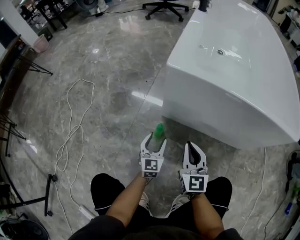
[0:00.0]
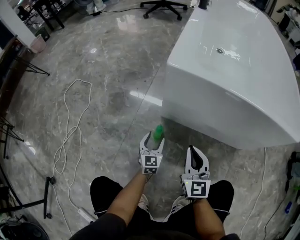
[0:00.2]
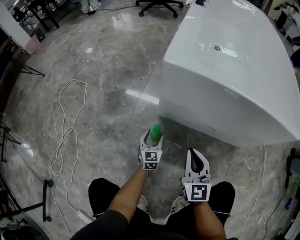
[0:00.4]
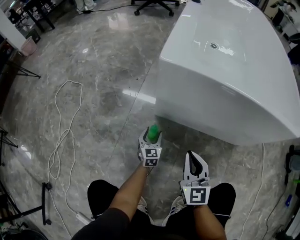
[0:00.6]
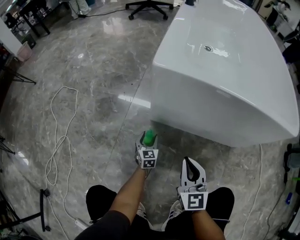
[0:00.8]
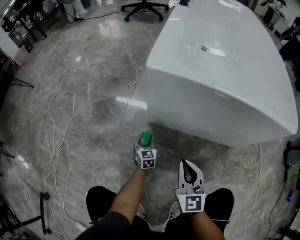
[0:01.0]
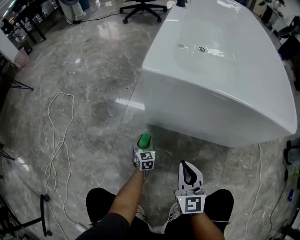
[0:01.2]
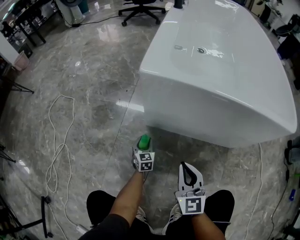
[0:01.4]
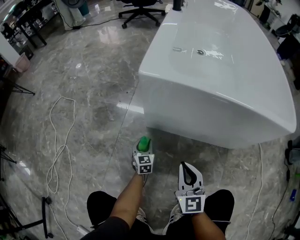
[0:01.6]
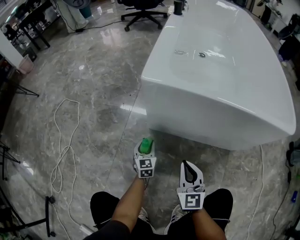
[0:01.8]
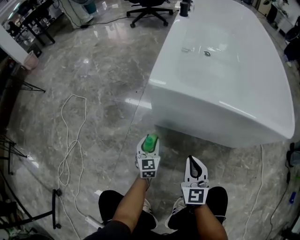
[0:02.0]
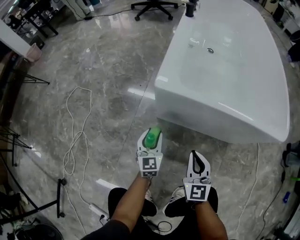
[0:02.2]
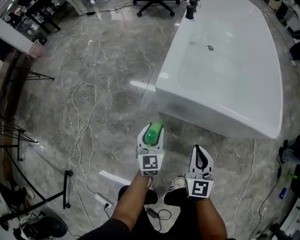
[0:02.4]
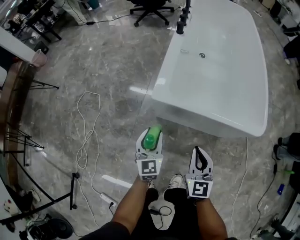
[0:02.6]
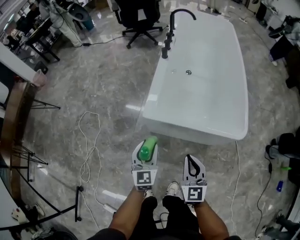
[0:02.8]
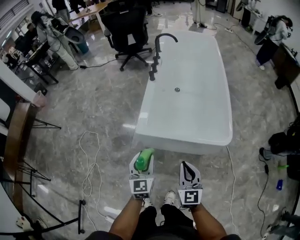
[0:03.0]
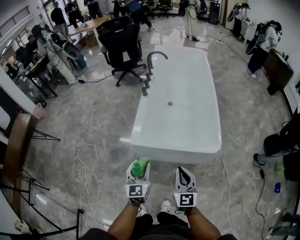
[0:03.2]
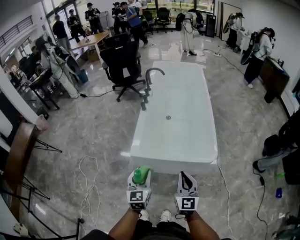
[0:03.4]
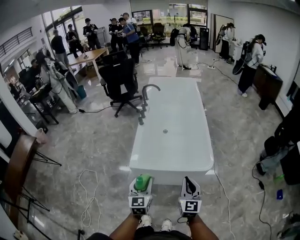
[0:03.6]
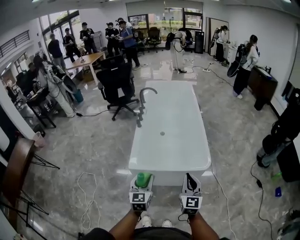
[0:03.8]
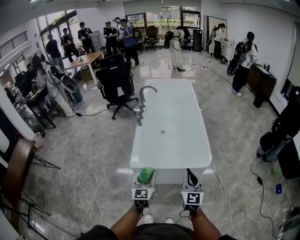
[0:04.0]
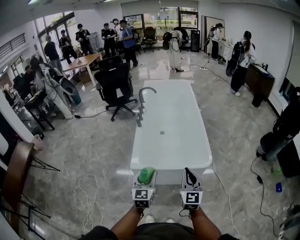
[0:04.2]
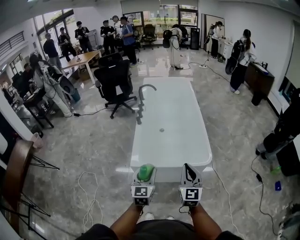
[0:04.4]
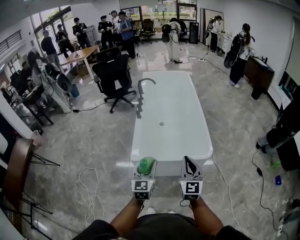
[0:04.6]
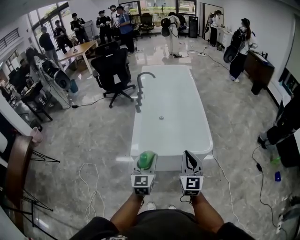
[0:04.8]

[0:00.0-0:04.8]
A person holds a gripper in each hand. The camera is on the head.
0:00.0 to 0:01.6: The left gripper goes some 15 cm downward and forward.
0:01.6 to 0:03.2: The grippers both shift upward by about 70 cm.
0:03.2 to 0:04.8: Both grippers move upward, approximately 10 cm.

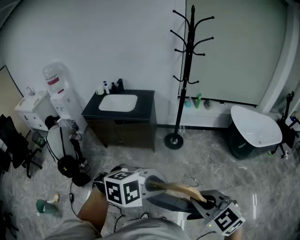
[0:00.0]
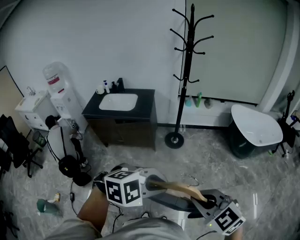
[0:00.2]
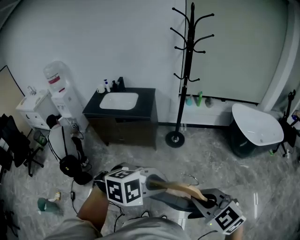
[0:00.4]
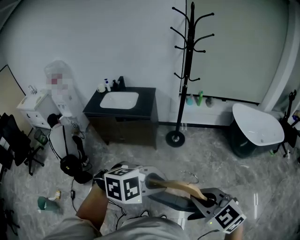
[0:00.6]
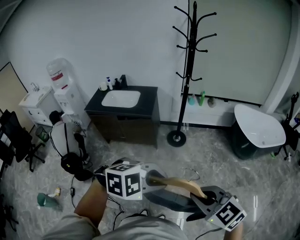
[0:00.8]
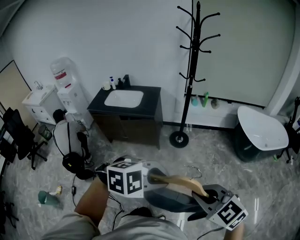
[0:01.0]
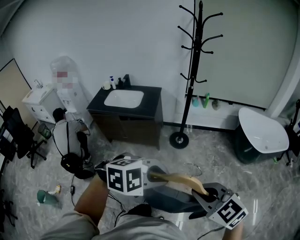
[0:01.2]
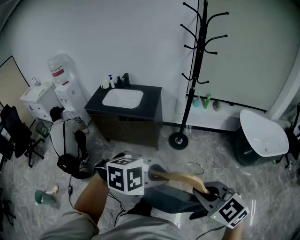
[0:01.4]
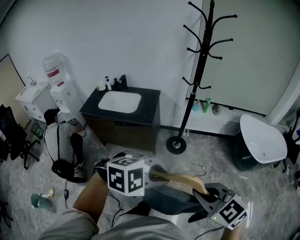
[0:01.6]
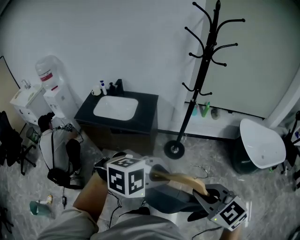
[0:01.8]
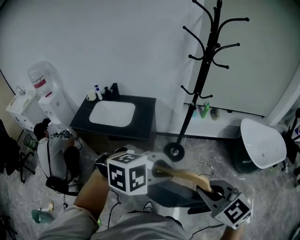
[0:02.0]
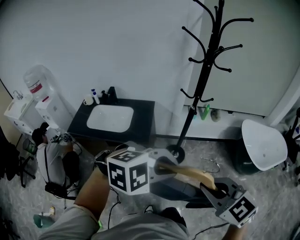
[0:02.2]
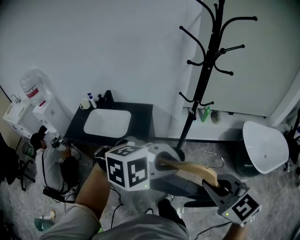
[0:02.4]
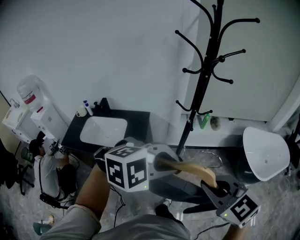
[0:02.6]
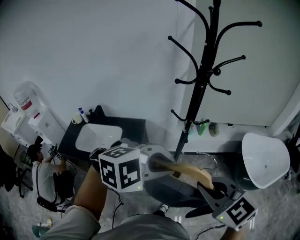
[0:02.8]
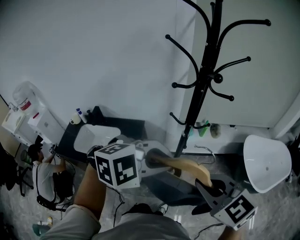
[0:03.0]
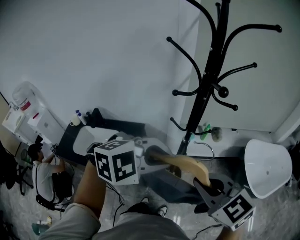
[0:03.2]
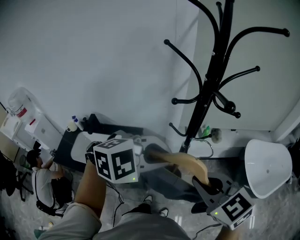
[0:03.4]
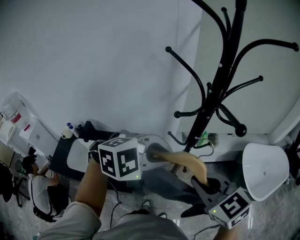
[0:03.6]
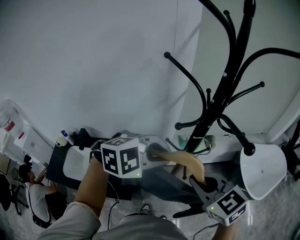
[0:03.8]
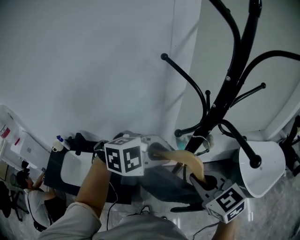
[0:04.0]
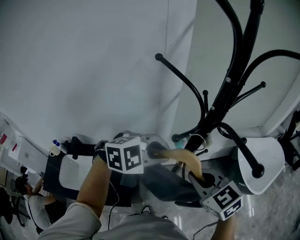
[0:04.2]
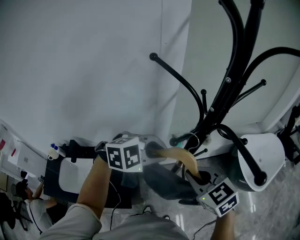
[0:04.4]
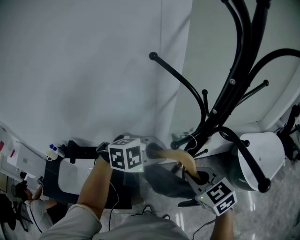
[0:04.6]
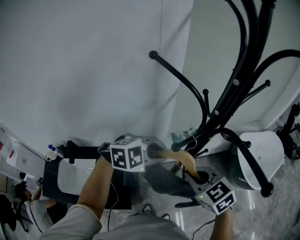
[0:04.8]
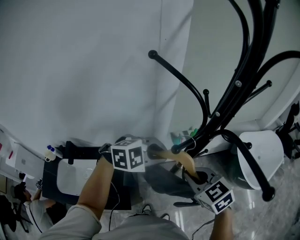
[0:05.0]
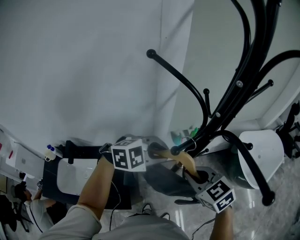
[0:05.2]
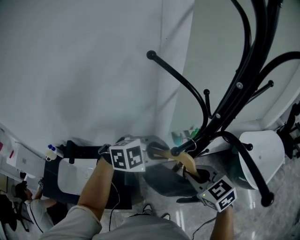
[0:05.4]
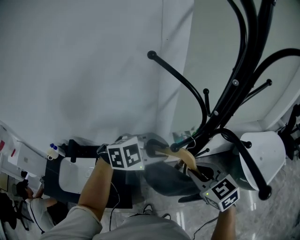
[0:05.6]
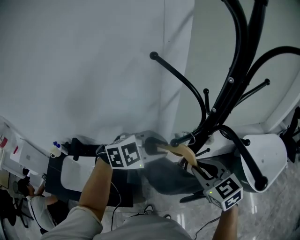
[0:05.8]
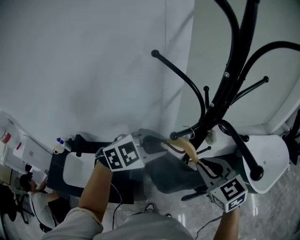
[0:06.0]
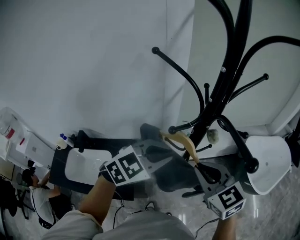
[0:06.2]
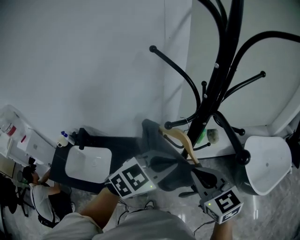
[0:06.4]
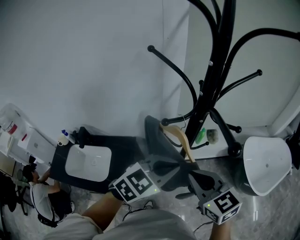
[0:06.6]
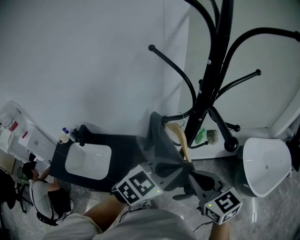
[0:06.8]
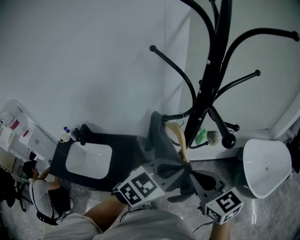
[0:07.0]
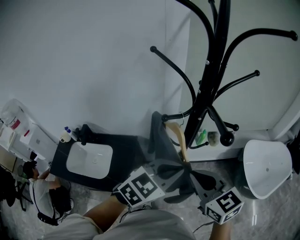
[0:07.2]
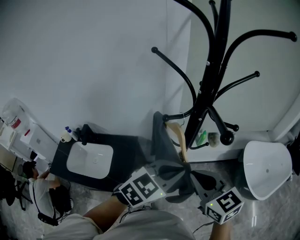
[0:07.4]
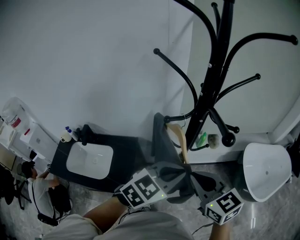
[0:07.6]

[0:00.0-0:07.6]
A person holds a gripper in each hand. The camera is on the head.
0:00.0 to 0:01.6: The left gripper ends up approximately 15 cm from where it was. The right gripper moves some 15 cm.
0:01.6 to 0:03.0: The two grippers travel together, roughly 50 cm.
0:03.0 to 0:04.6: The two grippers go roughly 25 cm forward and to the left. The right gripper turns by approximately 20 degrees.
0:04.6 to 0:06.0: The right gripper changes place by some 5 cm.
0:06.0 to 0:07.6: The left gripper goes some 15 cm backward and to the right, rotates approximately 30 degrees, and closes its fingers, while the right gripper moves backward, approximately 10 cm.

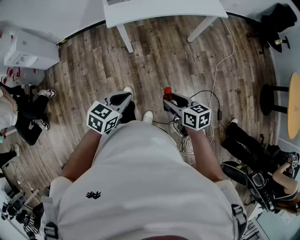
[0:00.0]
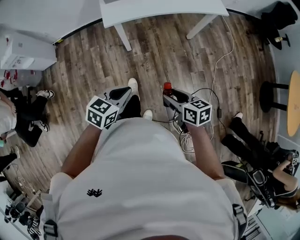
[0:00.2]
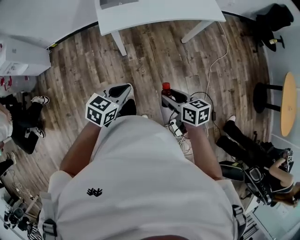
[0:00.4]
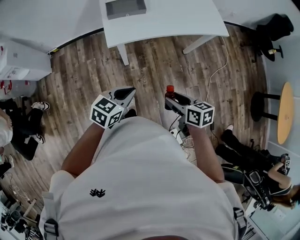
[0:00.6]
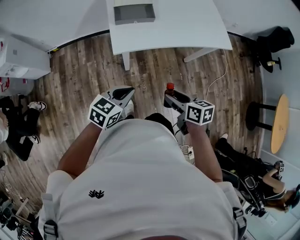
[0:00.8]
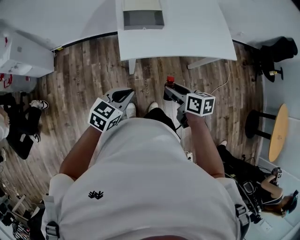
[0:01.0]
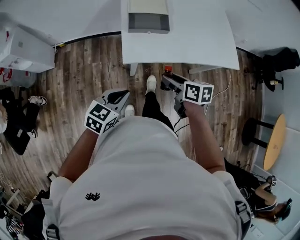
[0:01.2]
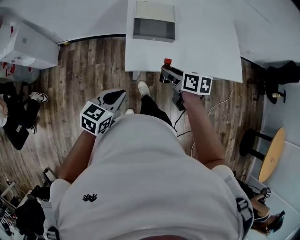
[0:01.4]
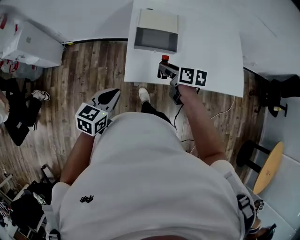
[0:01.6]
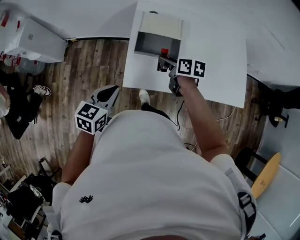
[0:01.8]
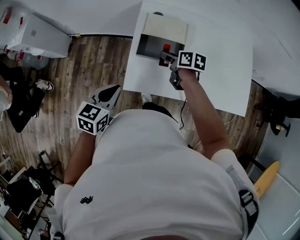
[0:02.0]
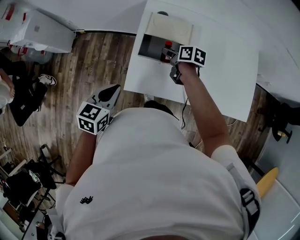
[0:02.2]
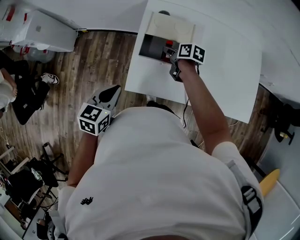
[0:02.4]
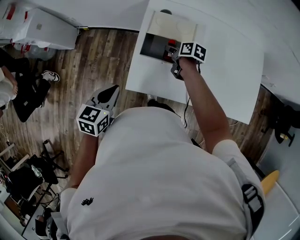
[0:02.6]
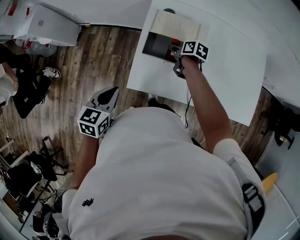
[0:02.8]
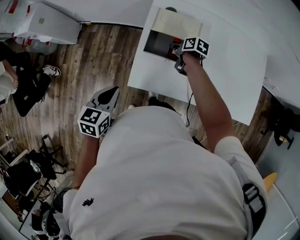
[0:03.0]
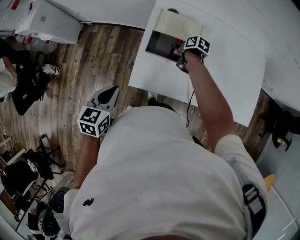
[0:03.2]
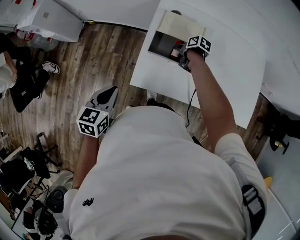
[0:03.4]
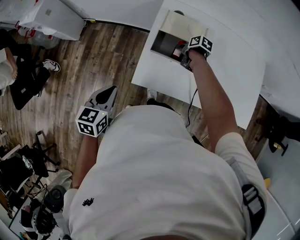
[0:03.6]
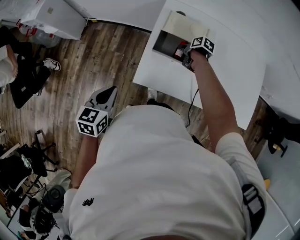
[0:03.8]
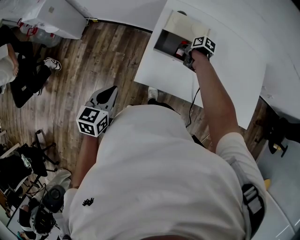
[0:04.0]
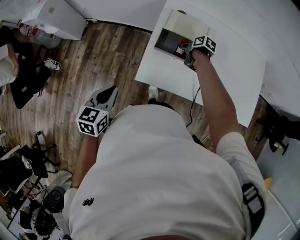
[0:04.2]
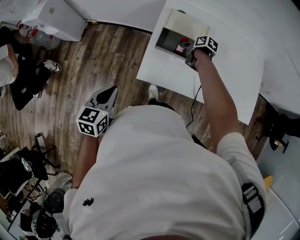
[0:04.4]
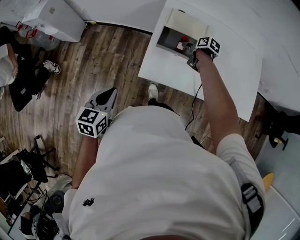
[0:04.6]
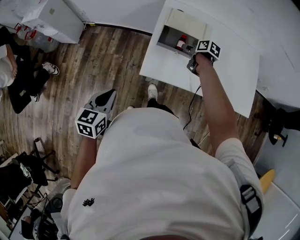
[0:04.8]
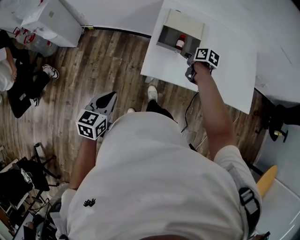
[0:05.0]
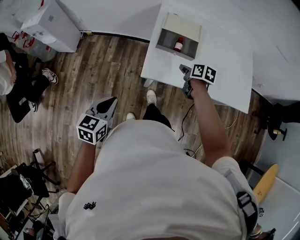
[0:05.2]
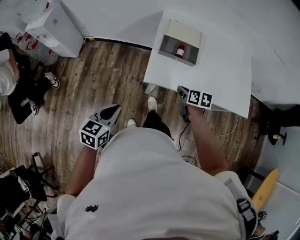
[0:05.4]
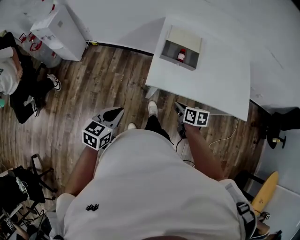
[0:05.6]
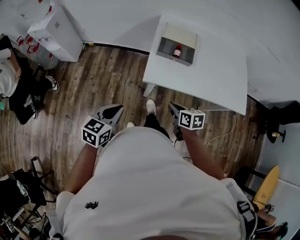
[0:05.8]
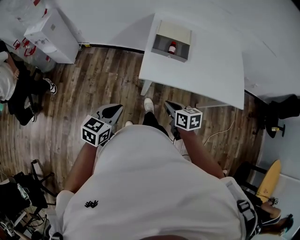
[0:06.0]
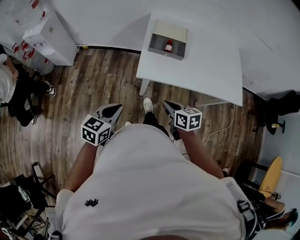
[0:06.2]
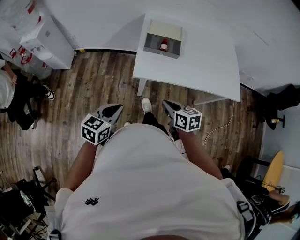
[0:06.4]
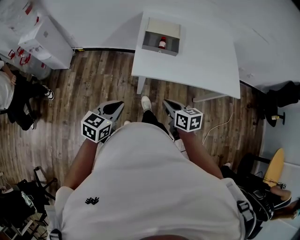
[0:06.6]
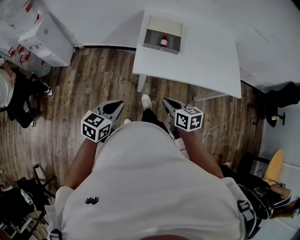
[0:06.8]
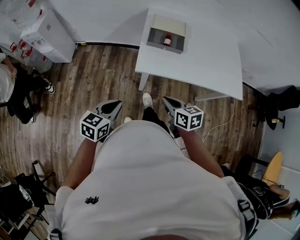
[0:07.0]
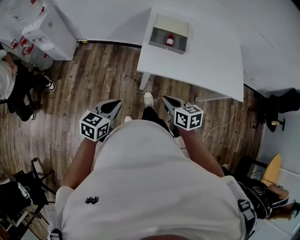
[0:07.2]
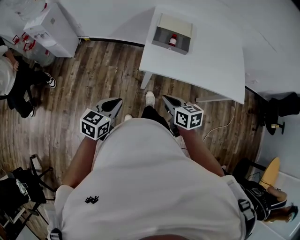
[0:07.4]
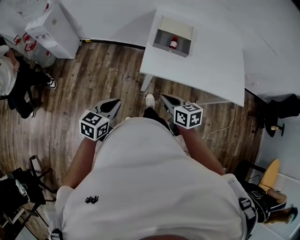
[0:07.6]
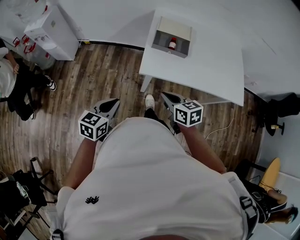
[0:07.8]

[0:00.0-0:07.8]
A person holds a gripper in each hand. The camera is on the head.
0:00.0 to 0:01.6: Both grippers travel together forward, roughly 50 cm. The left gripper swivels approximately 30 degrees.
0:01.6 to 0:03.2: The right gripper heads forward and downward, covering roughly 25 cm, and rotates some 20 degrees. The left gripper travels forward by approximately 5 cm, and rotates roughly 20 degrees.
0:03.2 to 0:04.6: The left gripper heads to the left, covering roughly 10 cm.
0:04.6 to 0:06.2: The left gripper travels backward by some 10 cm, while the right gripper goes roughly 35 cm backward, turns by roughly 30 degrees, and closes its fingers.
0:06.2 to 0:07.8: The grippers move only a little.

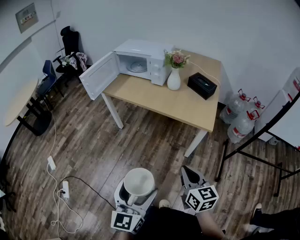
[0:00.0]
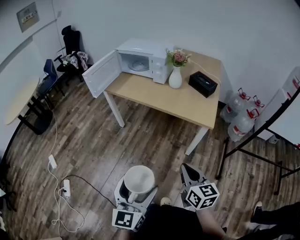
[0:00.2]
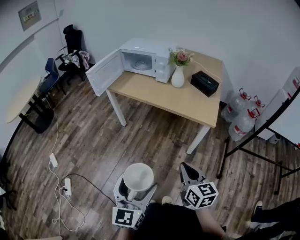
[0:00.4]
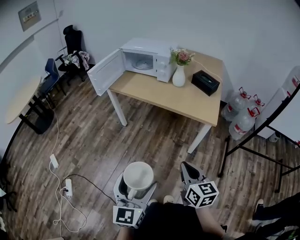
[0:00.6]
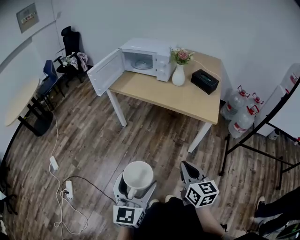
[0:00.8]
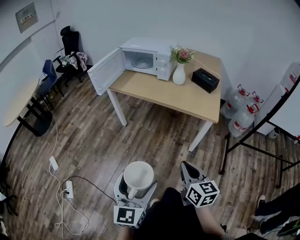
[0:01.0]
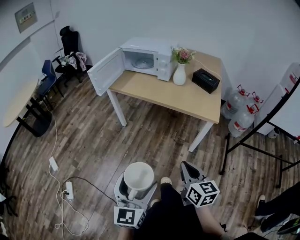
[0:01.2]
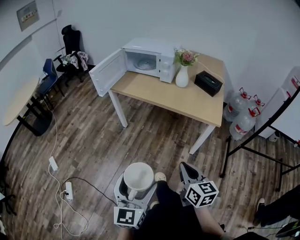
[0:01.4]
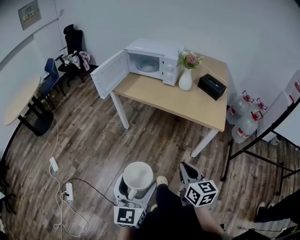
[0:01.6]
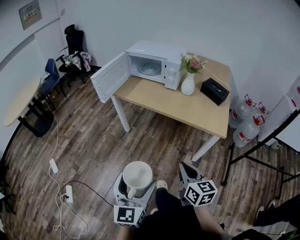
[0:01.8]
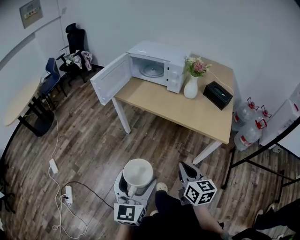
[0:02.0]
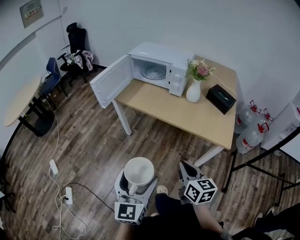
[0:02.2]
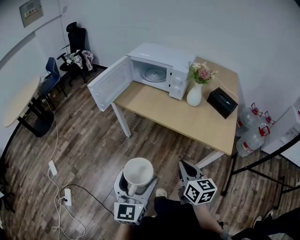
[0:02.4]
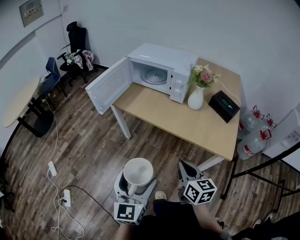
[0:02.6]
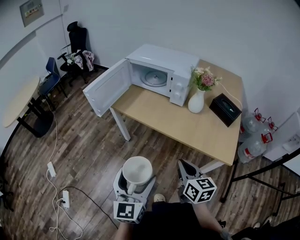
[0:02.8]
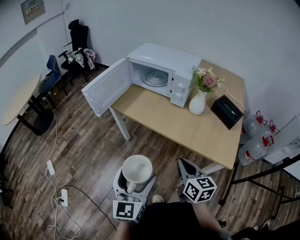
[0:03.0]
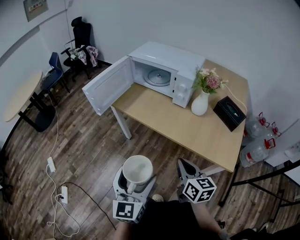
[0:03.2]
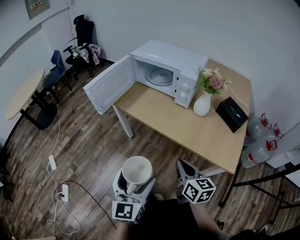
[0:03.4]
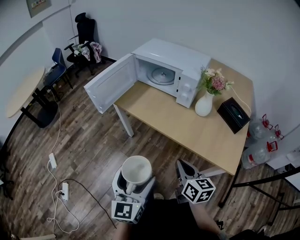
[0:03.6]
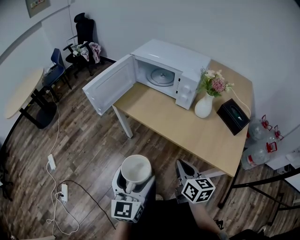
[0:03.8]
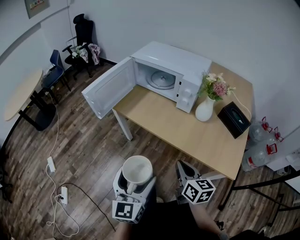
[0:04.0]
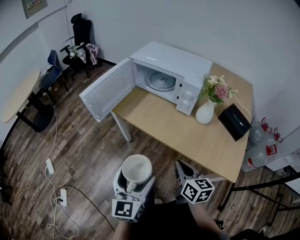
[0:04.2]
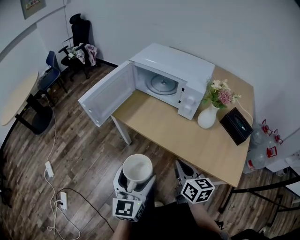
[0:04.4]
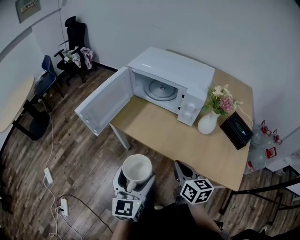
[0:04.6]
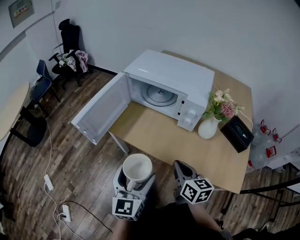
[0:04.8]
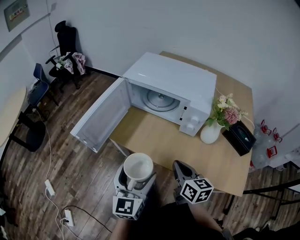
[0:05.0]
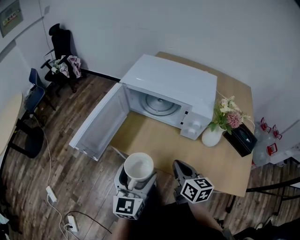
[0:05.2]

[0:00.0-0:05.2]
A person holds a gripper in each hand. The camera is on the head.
0:00.0 to 0:01.8: Both grippers travel together to the left and forward, approximately 15 cm.
0:01.8 to 0:03.4: Both grippers travel together forward, approximately 20 cm.
0:03.4 to 0:05.2: Both grippers move forward, roughly 30 cm.
